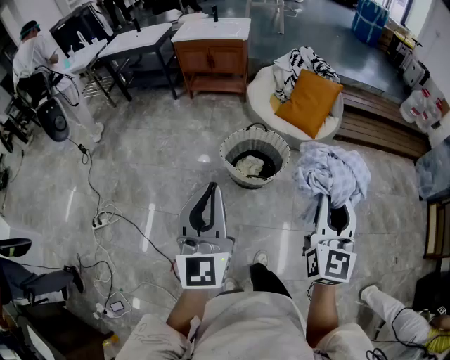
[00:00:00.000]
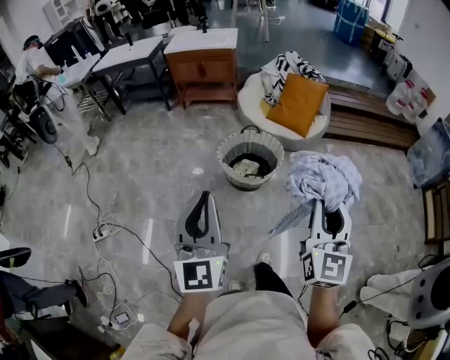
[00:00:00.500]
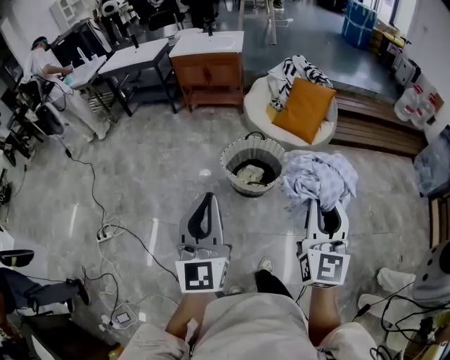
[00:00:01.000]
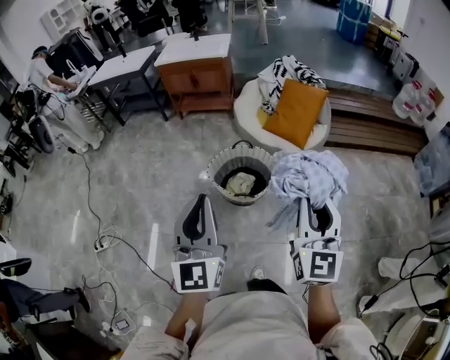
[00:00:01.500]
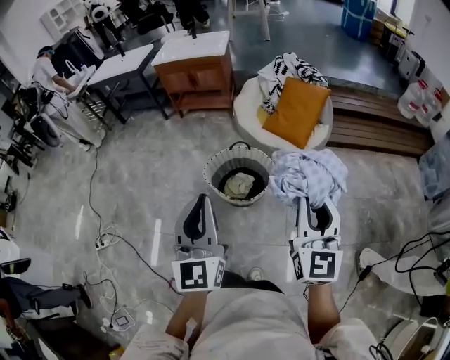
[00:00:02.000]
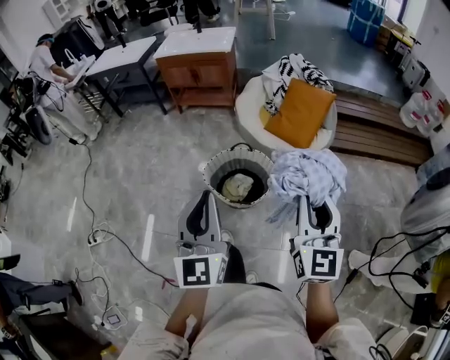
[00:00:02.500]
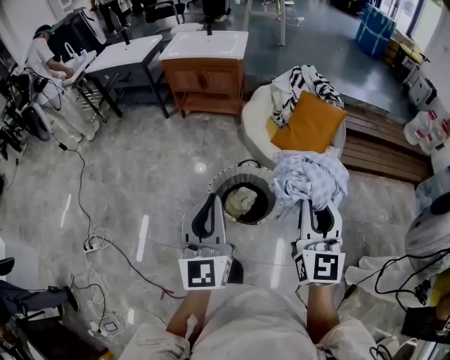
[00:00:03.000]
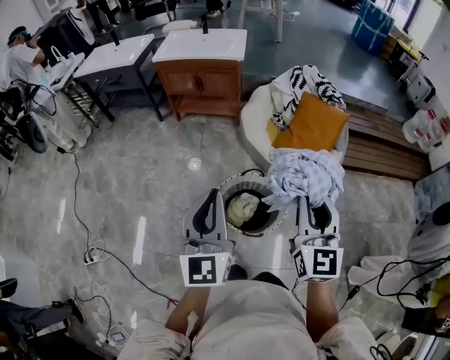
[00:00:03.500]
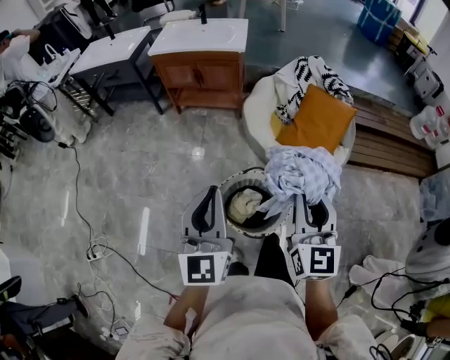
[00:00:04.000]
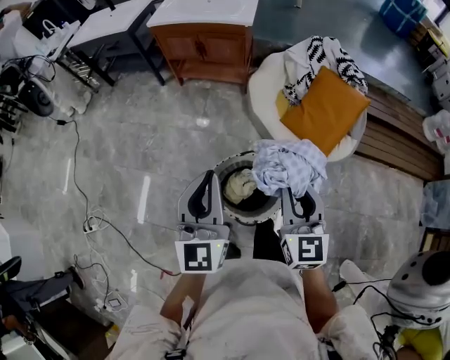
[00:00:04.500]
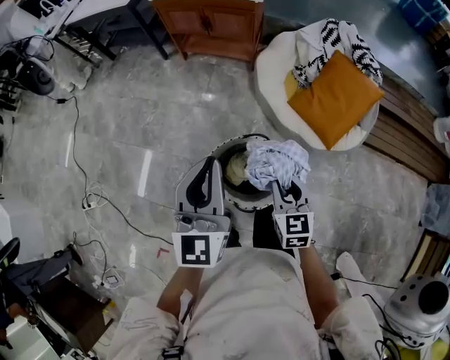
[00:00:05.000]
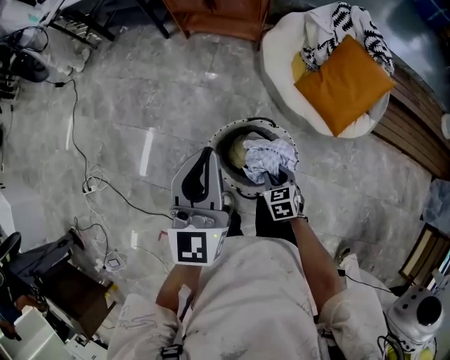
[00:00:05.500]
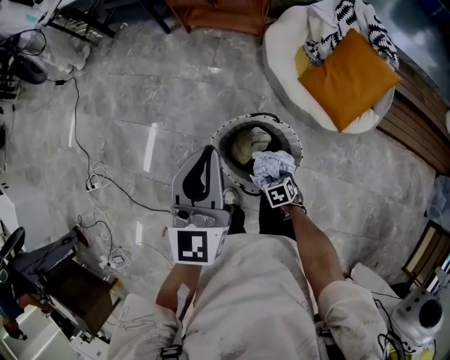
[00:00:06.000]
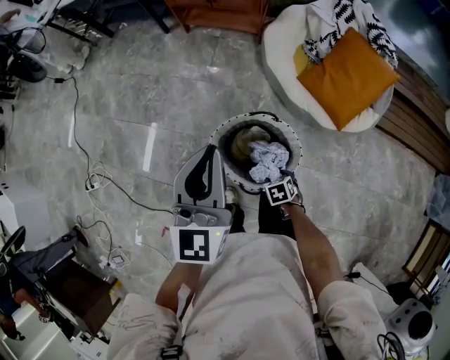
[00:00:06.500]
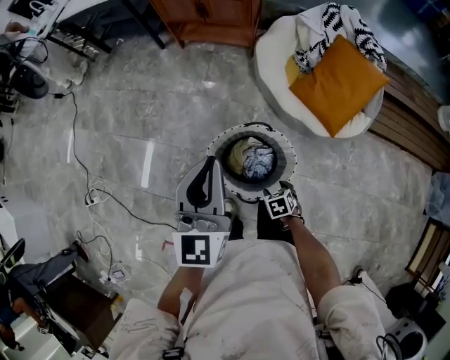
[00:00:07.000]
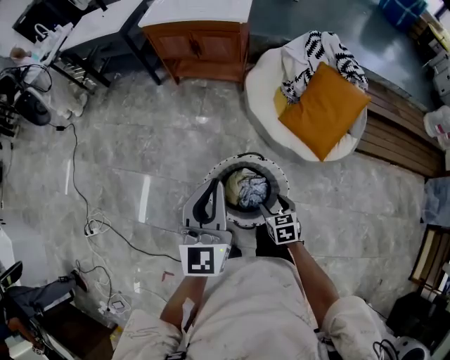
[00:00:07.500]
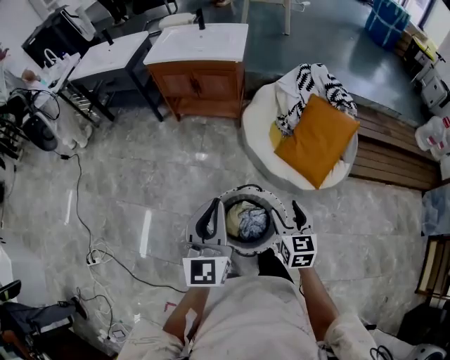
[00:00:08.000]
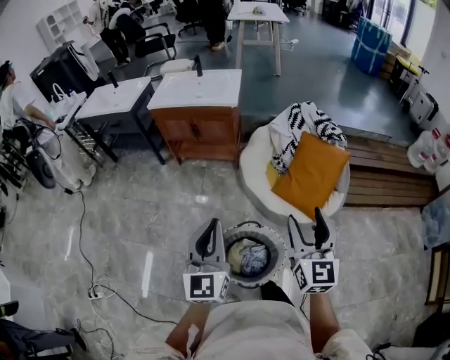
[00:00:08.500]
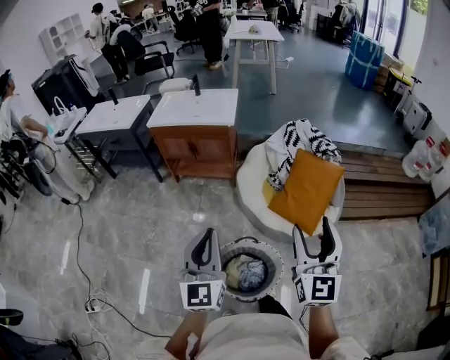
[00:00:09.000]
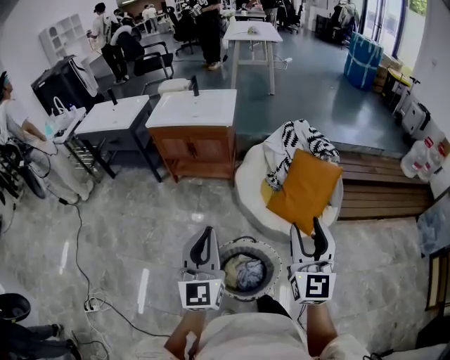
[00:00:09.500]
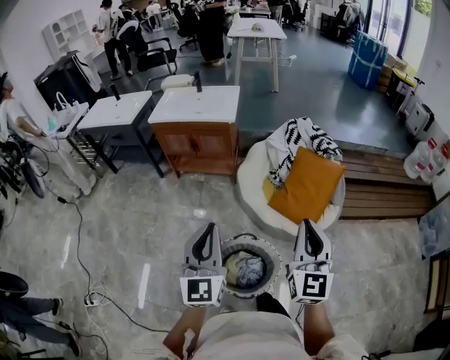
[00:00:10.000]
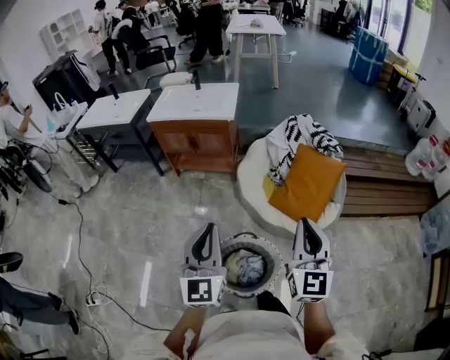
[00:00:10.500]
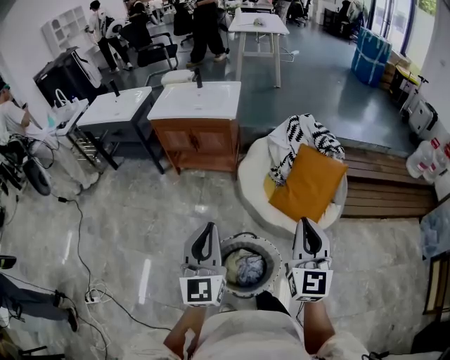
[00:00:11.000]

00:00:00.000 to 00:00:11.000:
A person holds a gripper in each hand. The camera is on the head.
00:00:00.000 to 00:00:02.000: The grippers both shift to the right and forward by approximately 15 cm.
00:00:02.000 to 00:00:03.500: Both grippers move forward and to the left, some 30 cm.
00:00:03.500 to 00:00:05.500: The left gripper goes approximately 15 cm forward and downward; the right gripper shifts roughly 40 cm downward, and tips its fingers downward by about 50 degrees.
00:00:05.500 to 00:00:07.500: The right gripper goes downward and returns, roughly 10 cm each way, and opens.
00:00:07.500 to 00:00:09.000: The left gripper moves upward, some 10 cm; the right gripper is displaced upward by some 40 cm, and angles its fingers upward, by roughly 60 degrees.
00:00:09.000 to 00:00:11.000: The right gripper closes up.

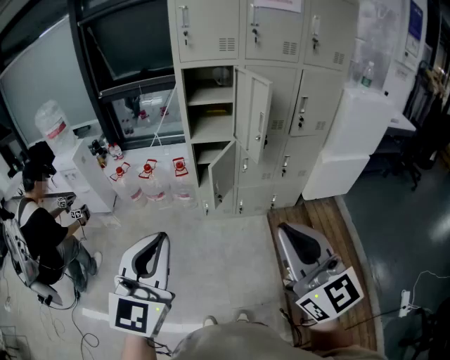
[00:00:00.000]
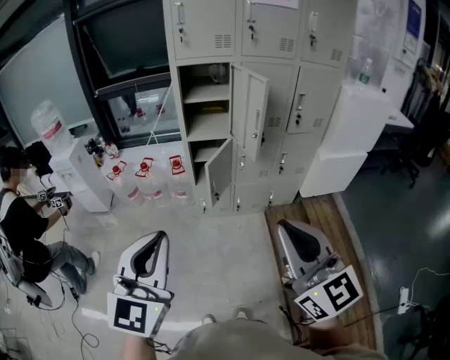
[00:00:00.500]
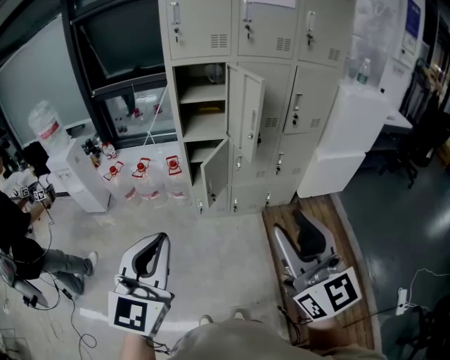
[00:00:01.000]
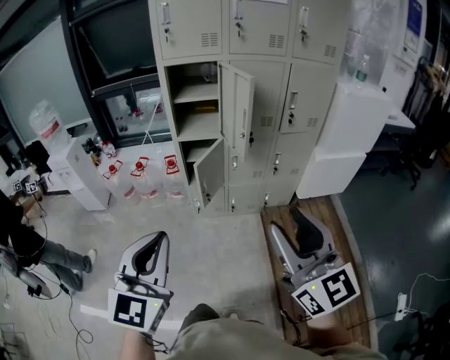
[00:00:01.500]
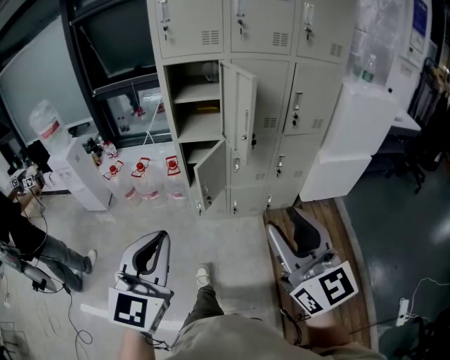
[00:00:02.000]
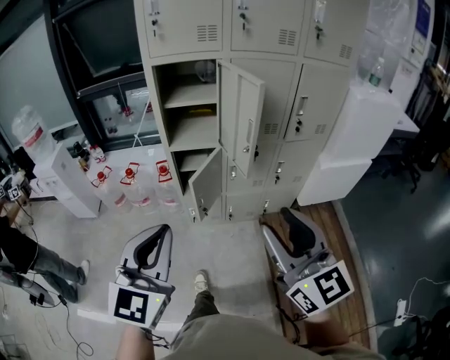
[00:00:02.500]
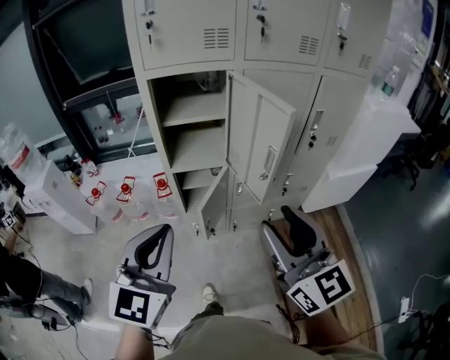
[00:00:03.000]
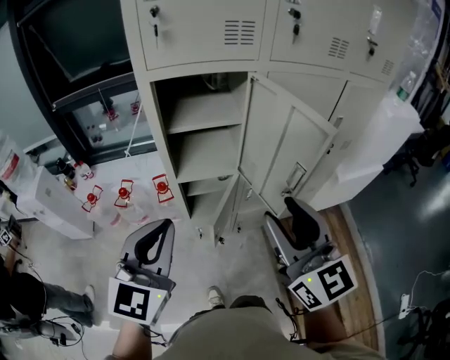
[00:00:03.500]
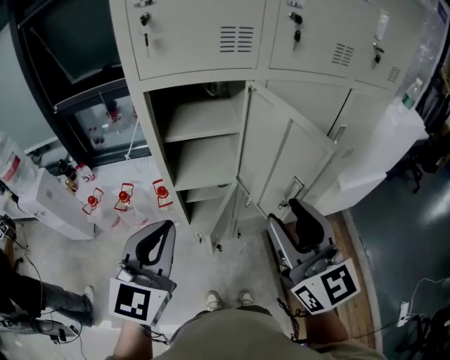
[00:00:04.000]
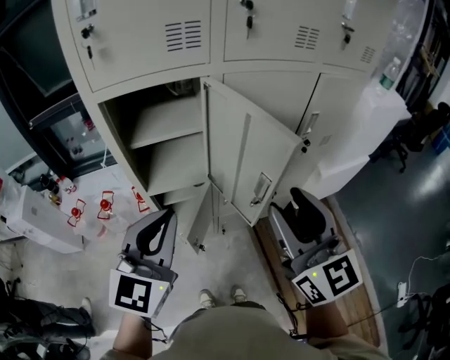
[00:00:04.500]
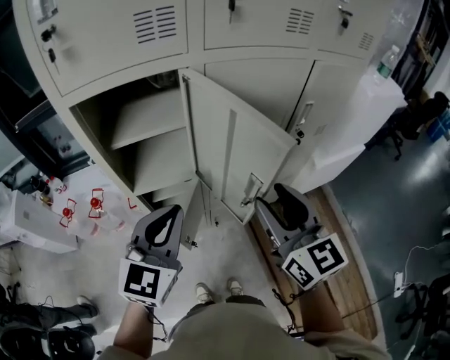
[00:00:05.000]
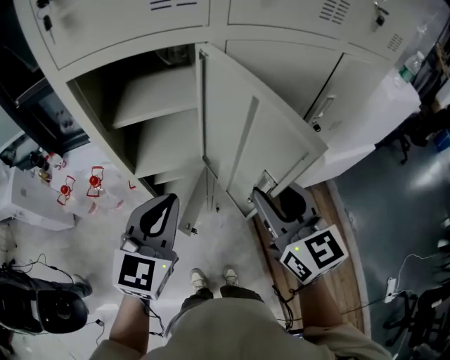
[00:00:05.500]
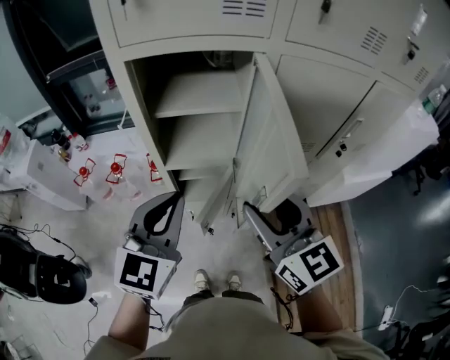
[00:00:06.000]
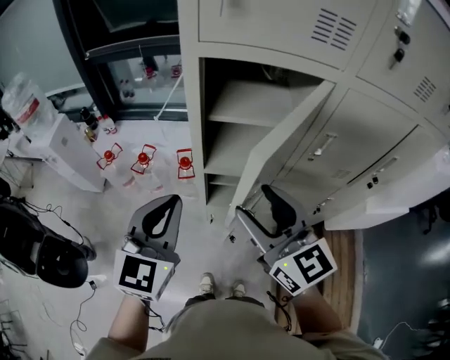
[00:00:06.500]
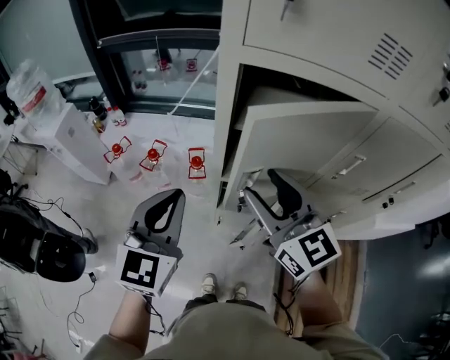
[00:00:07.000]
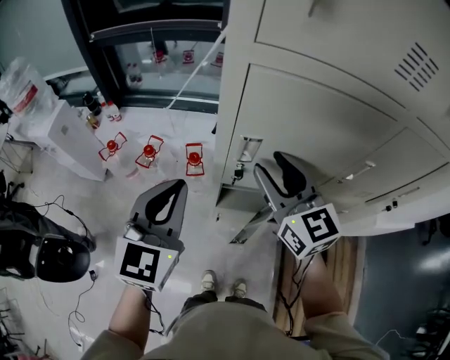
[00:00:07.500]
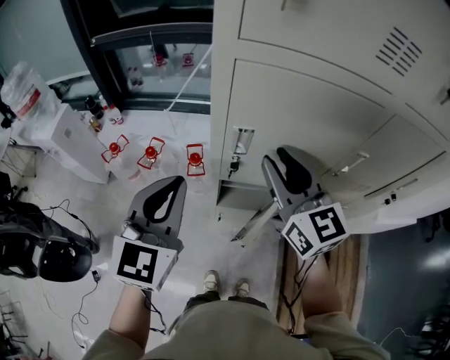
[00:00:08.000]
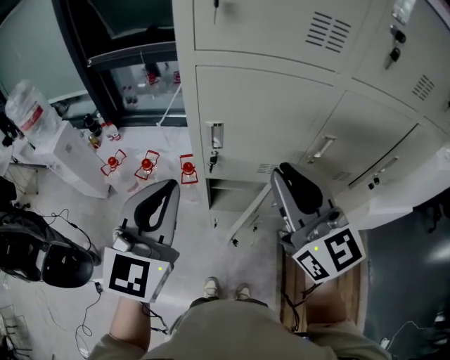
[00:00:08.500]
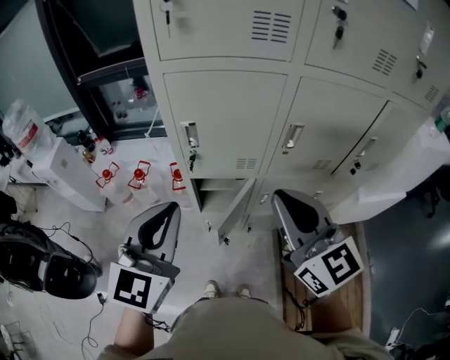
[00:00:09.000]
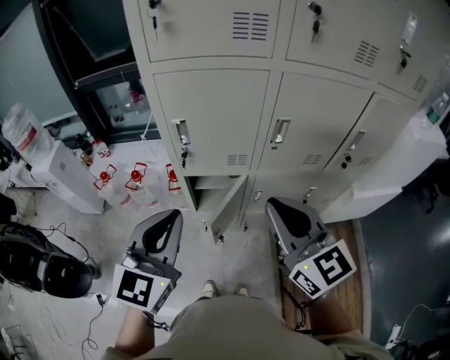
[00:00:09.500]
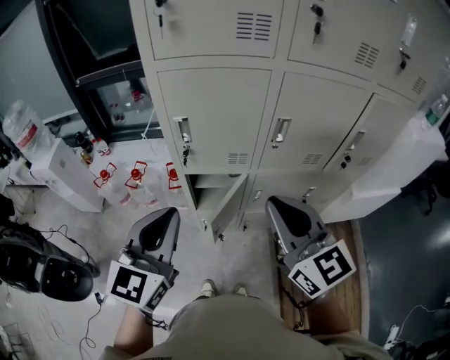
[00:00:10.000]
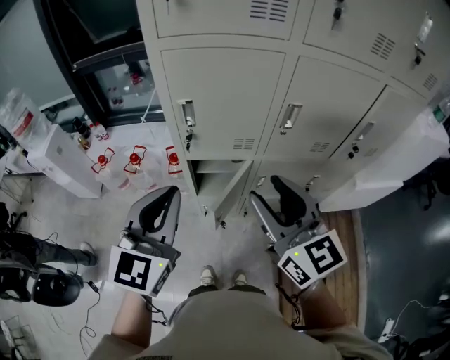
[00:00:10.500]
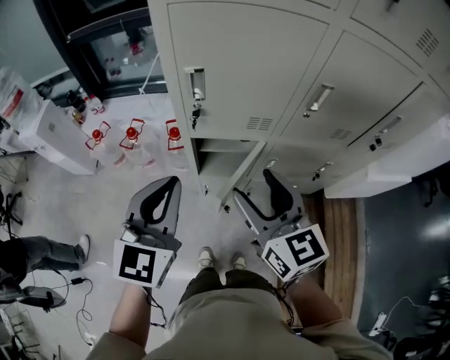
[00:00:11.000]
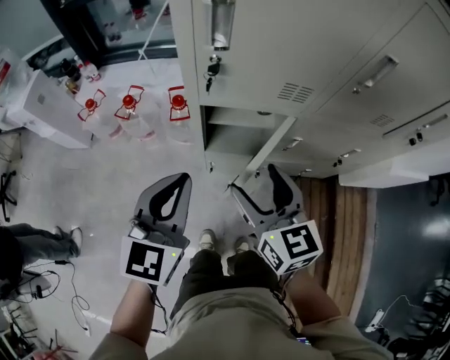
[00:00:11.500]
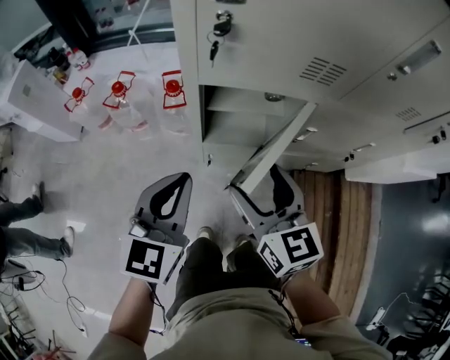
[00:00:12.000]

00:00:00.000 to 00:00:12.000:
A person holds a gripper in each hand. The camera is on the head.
00:00:00.000 to 00:00:02.000: The right gripper shifts about 10 cm to the right and forward, and opens its fingers. The left gripper shifts approximately 10 cm to the right.
00:00:02.000 to 00:00:04.000: Both grippers move forward, some 40 cm.
00:00:04.000 to 00:00:06.000: The left gripper shifts roughly 5 cm forward, and reaches approximately 10 cm to the right, then returns. The right gripper goes about 10 cm downward and forward, and travels to the right and back again, about 10 cm each way.
00:00:06.000 to 00:00:08.000: The right gripper travels forward and to the left by about 20 cm. Meanwhile the left gripper moves to the left and forward, some 20 cm.
00:00:08.000 to 00:00:10.000: Both grippers move backward and to the right, some 25 cm.
00:00:10.000 to 00:00:12.000: Both grippers move downward, approximately 35 cm. The right gripper changes its angle by approximately 20 degrees, and opens.

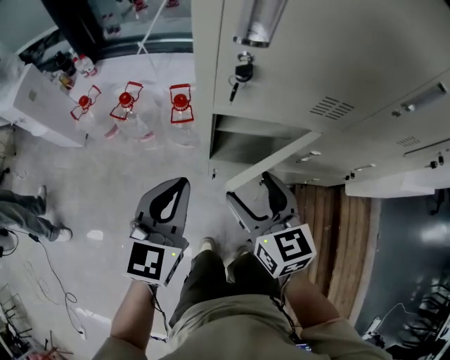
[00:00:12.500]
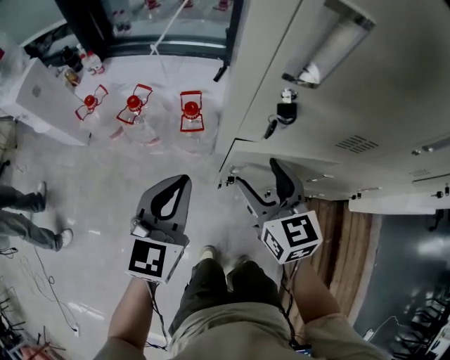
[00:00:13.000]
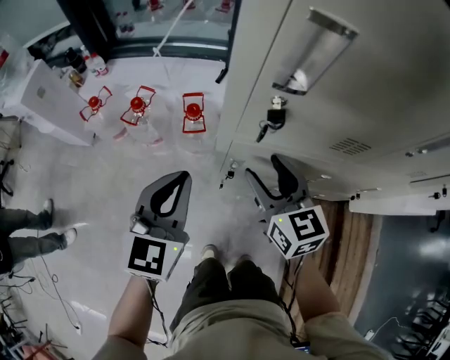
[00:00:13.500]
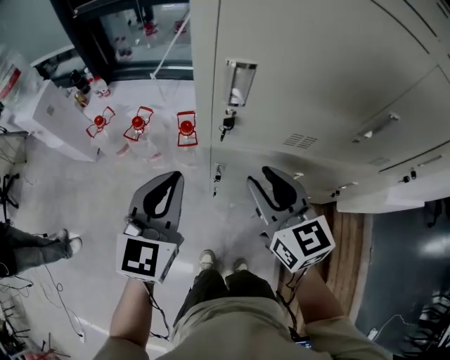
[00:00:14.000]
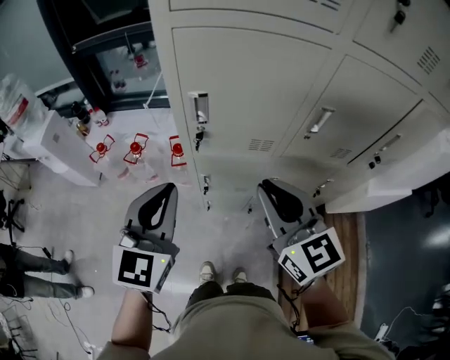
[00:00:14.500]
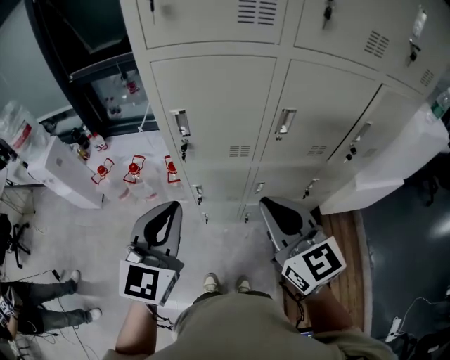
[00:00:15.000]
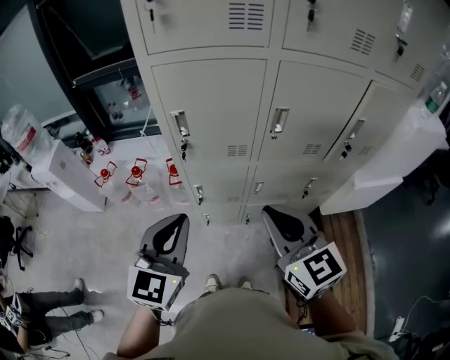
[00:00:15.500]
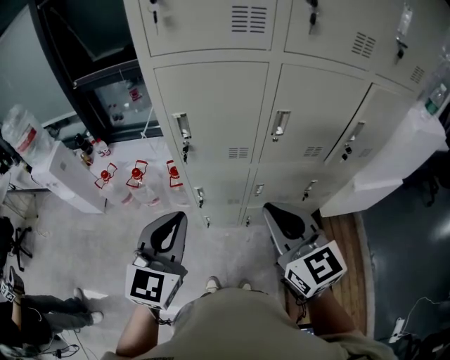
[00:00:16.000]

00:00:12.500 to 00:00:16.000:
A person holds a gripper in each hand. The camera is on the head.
00:00:12.500 to 00:00:14.500: Both grippers travel together upward, some 25 cm. The right gripper closes.
00:00:14.500 to 00:00:16.000: Both grippers travel together backward and to the right, some 10 cm.
